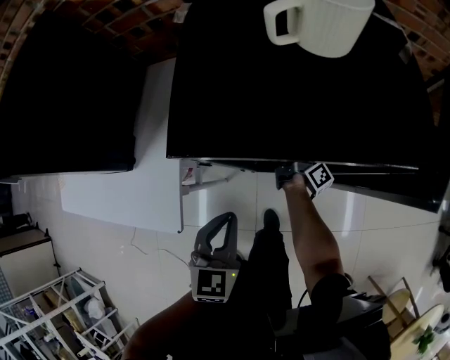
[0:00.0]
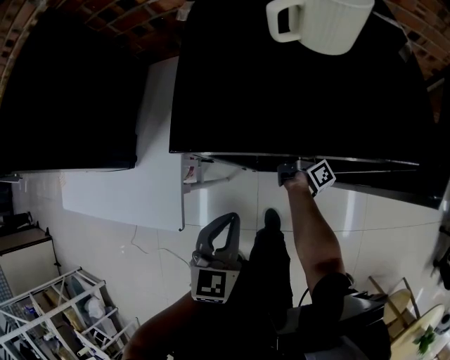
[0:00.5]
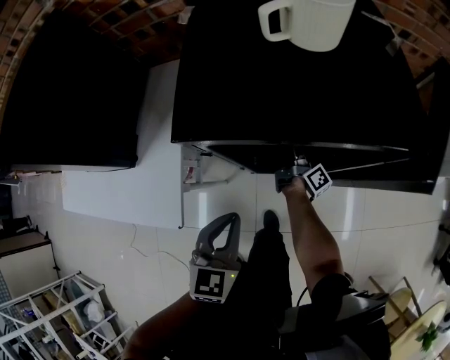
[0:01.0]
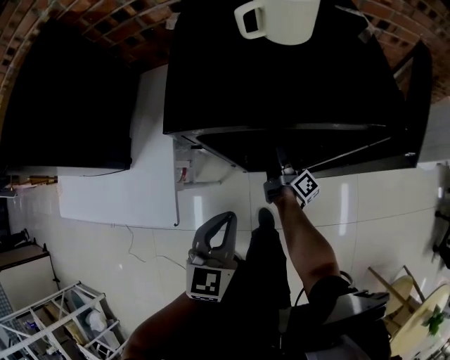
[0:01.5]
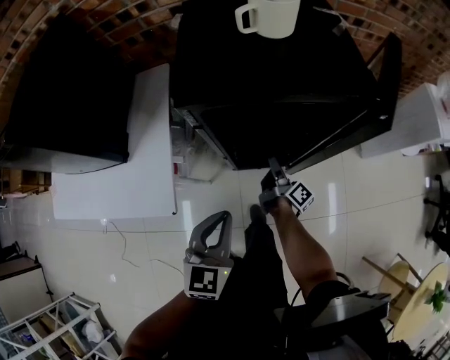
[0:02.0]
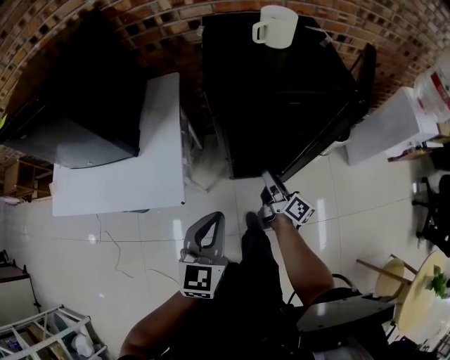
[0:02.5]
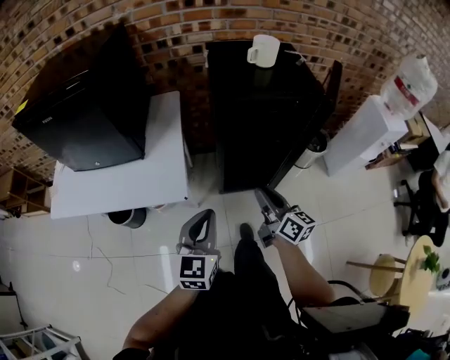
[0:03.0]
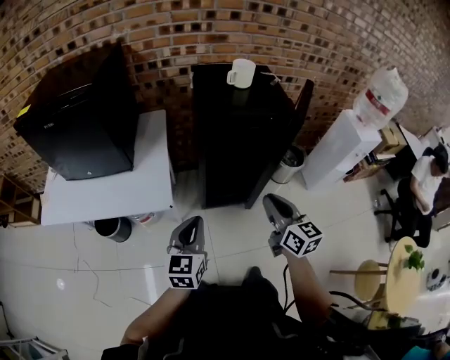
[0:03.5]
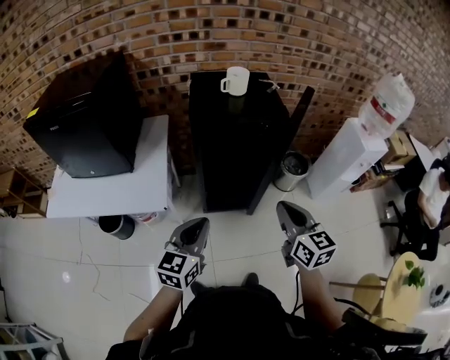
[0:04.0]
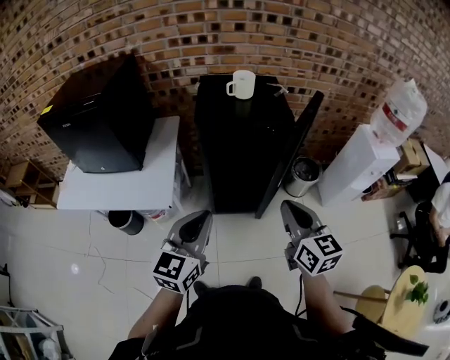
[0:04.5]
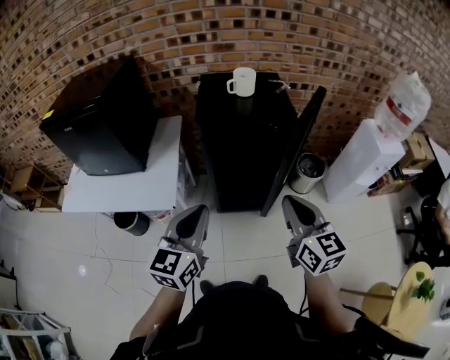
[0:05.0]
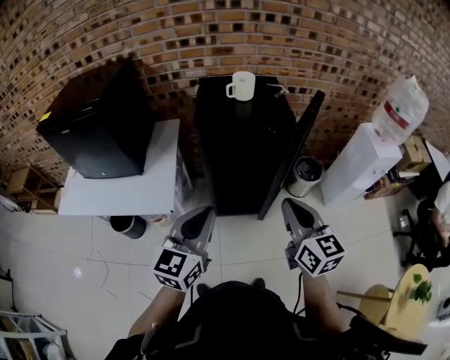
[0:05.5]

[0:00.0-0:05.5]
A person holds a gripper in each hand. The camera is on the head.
0.0 to 2.0 s: The left gripper moves approximately 10 cm.
2.0 to 3.5 s: The left gripper changes place by approximately 20 cm.
3.5 to 5.5 s: The left gripper goes roughly 15 cm upward.

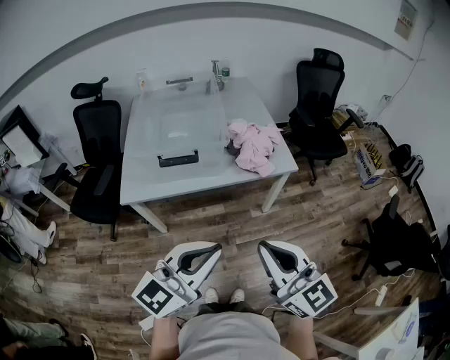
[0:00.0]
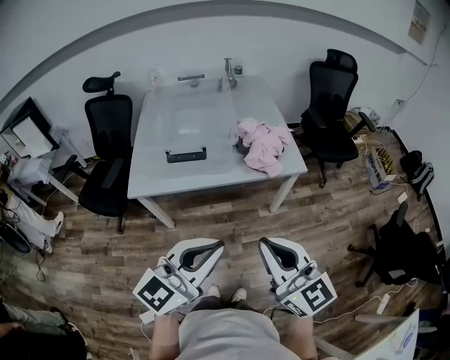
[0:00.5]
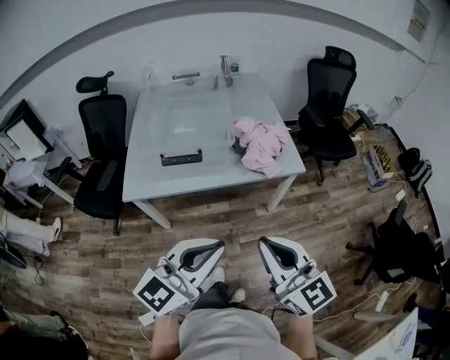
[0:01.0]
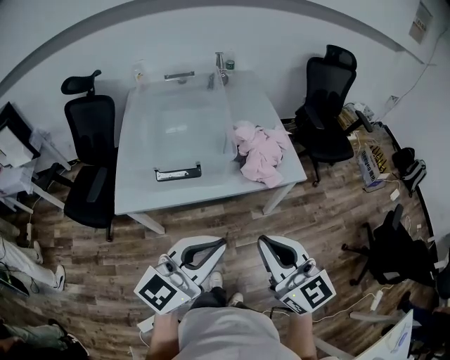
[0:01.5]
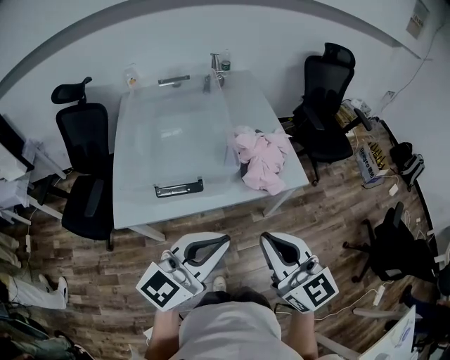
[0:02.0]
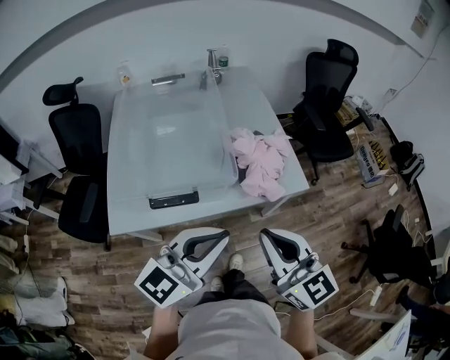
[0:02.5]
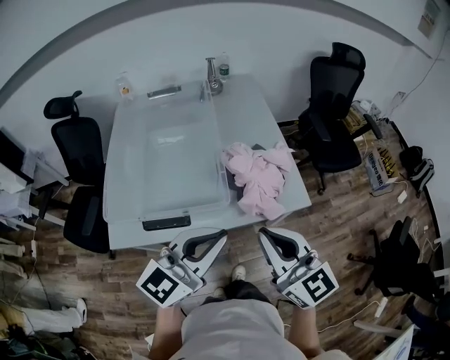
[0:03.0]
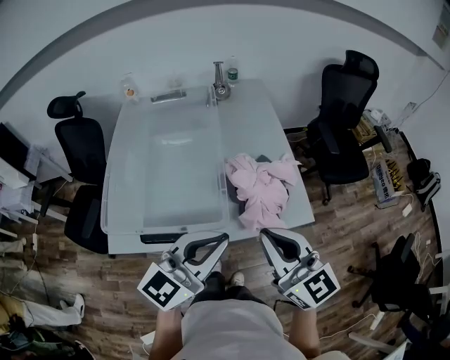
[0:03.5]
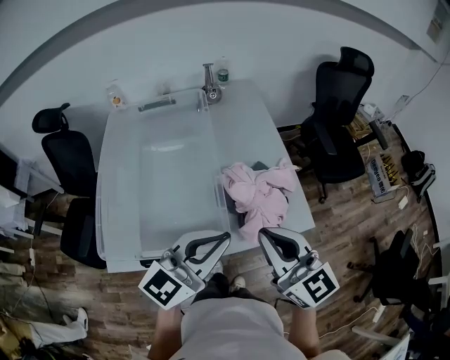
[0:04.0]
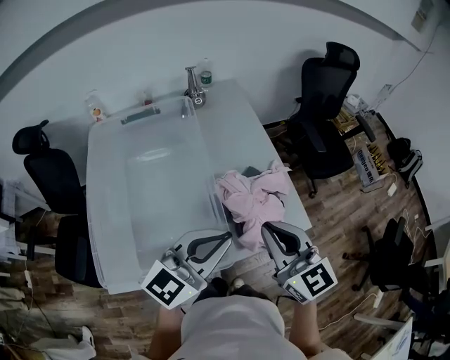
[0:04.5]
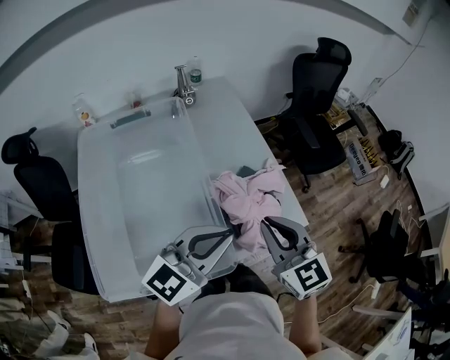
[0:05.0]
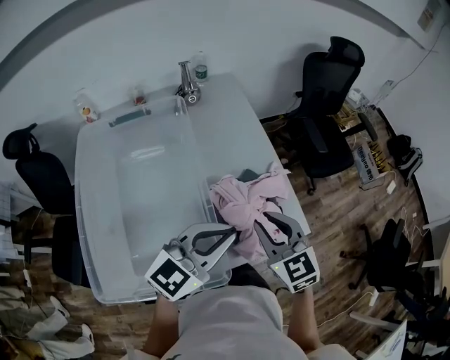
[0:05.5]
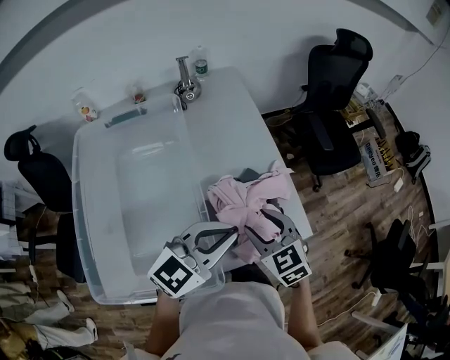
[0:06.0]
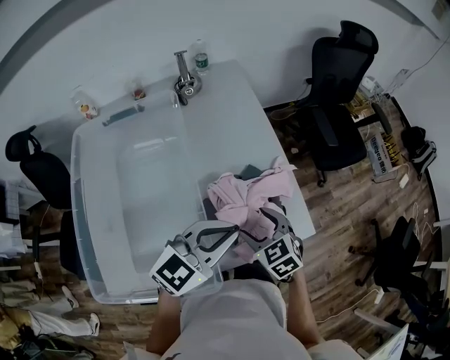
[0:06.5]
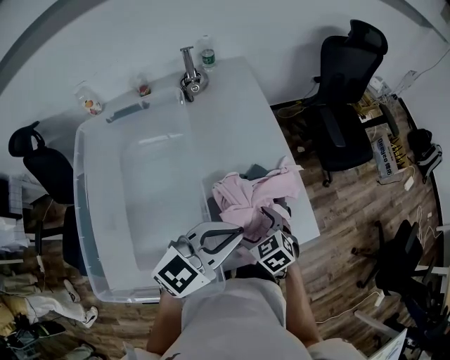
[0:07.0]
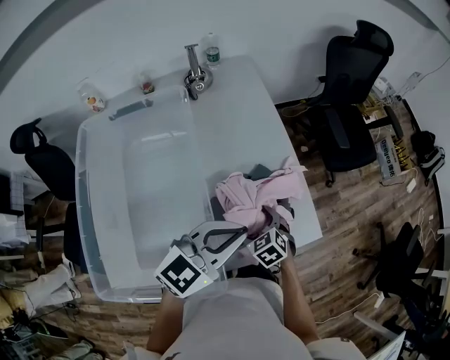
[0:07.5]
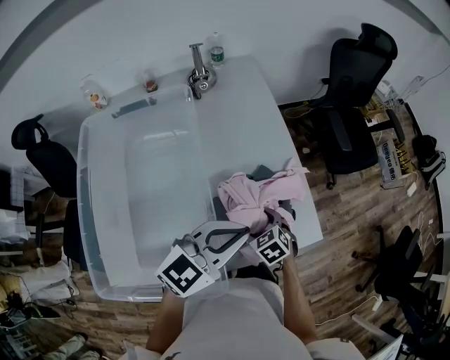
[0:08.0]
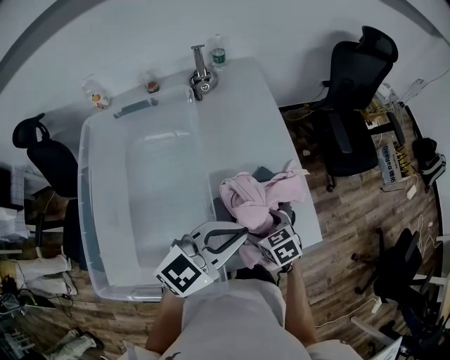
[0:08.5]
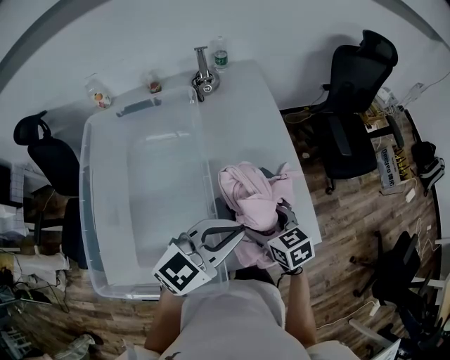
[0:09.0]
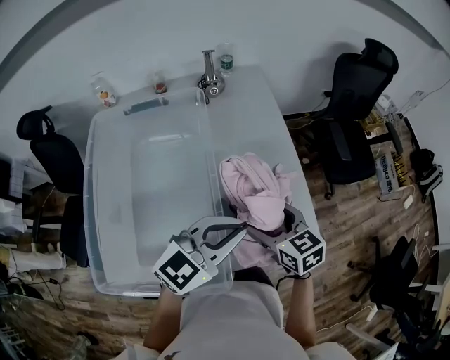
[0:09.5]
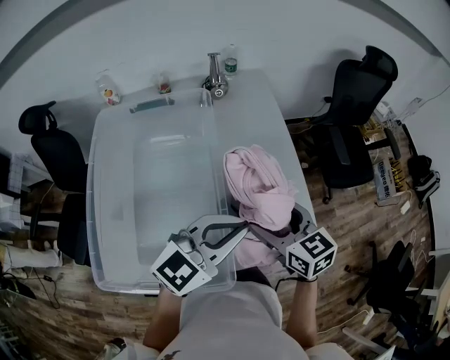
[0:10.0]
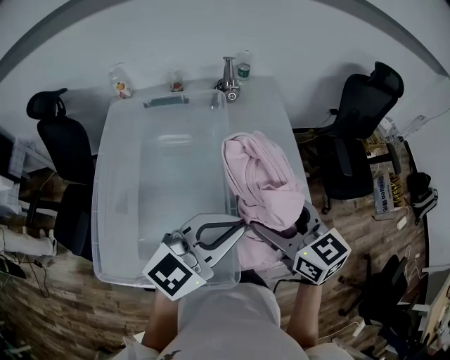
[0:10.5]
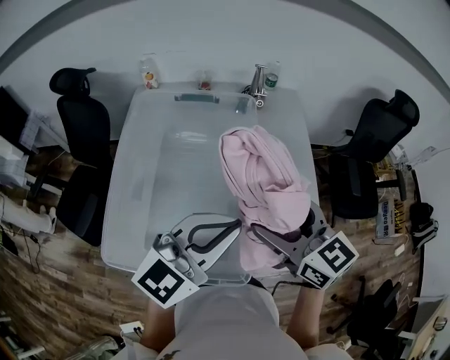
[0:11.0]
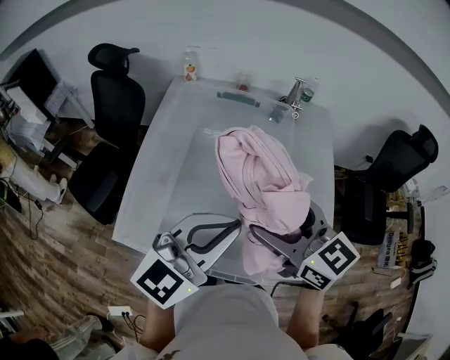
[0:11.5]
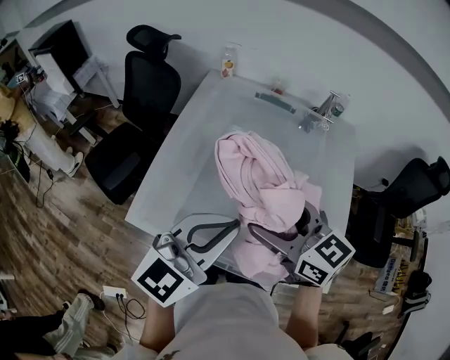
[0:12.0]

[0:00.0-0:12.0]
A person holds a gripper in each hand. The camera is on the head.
0.0 to 2.0 s: The two grippers go approximately 20 cm forward.
2.0 to 4.0 s: Both grippers travel together forward, about 25 cm.
4.0 to 6.0 s: The right gripper moves forward and downward, roughly 20 cm, tilts its fingers approximately 30 degrees downward, and opens its fingers. Meanwhile the left gripper heads forward, covering roughly 15 cm.
6.0 to 8.0 s: The right gripper goes roughly 15 cm downward, swivels about 20 degrees, and opens up.
8.0 to 10.0 s: The right gripper shifts approximately 20 cm upward, and tips its fingers upward by approximately 30 degrees, while the left gripper changes place by roughly 5 cm.
10.0 to 12.0 s: The right gripper ends up about 25 cm from where it was, and turns by roughly 40 degrees, while the left gripper ends up some 25 cm from where it was, and swivels about 40 degrees.

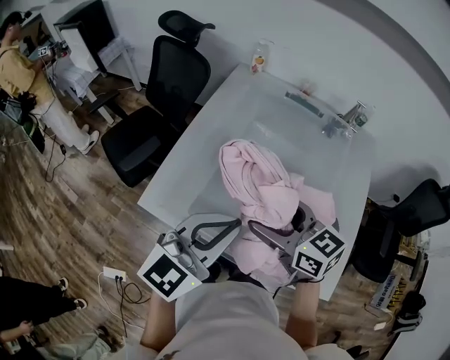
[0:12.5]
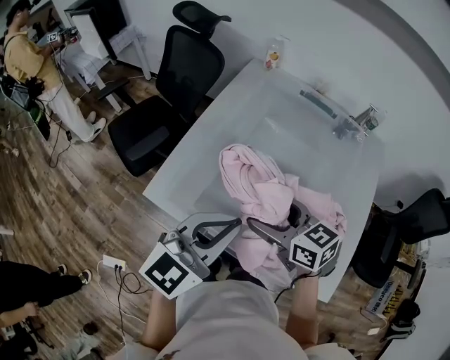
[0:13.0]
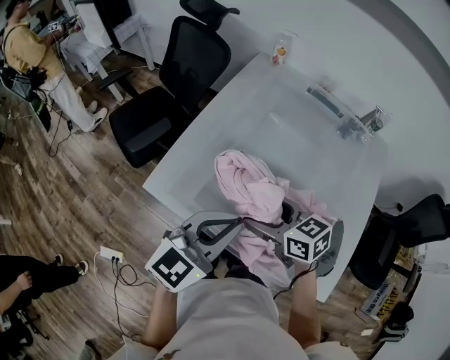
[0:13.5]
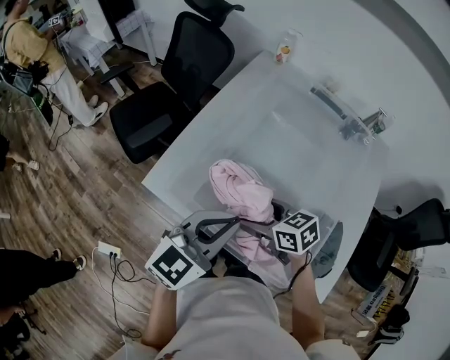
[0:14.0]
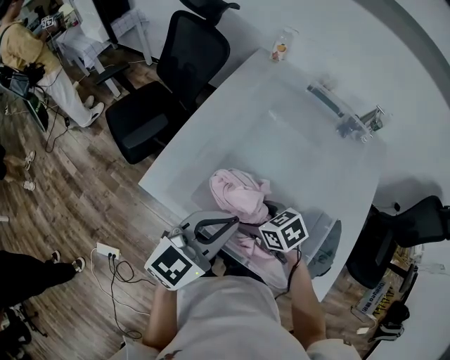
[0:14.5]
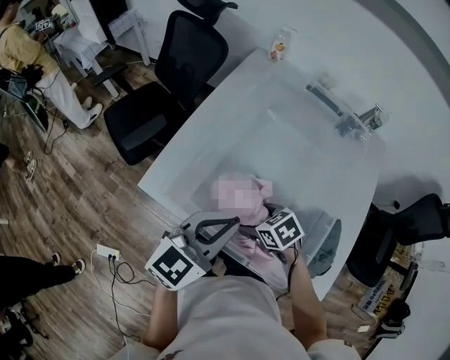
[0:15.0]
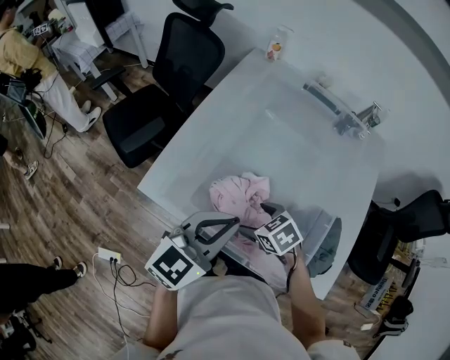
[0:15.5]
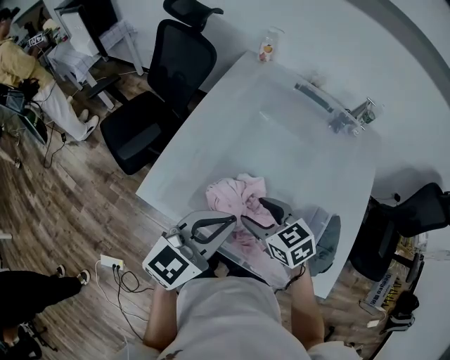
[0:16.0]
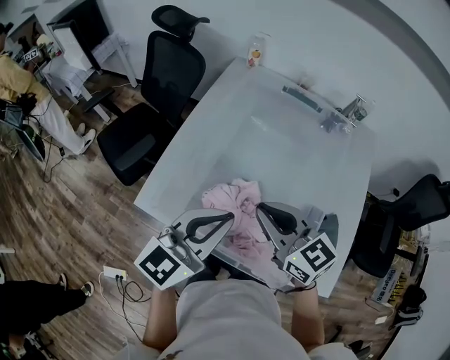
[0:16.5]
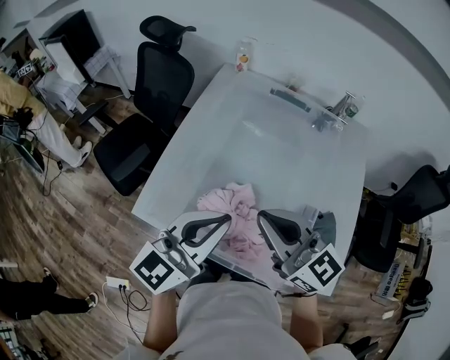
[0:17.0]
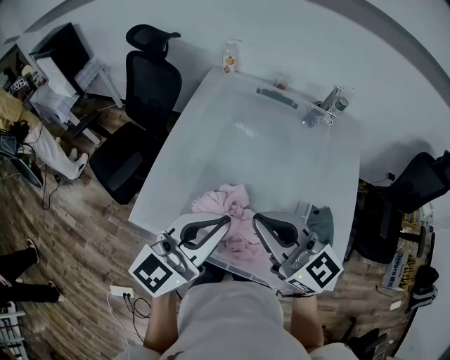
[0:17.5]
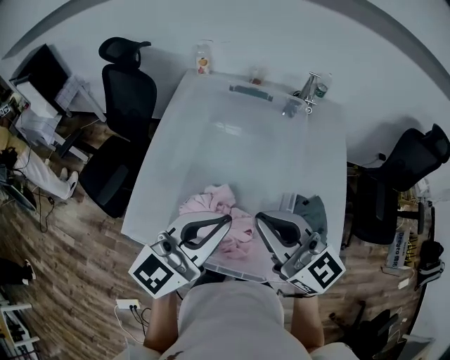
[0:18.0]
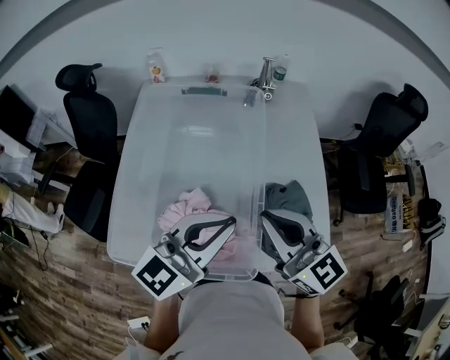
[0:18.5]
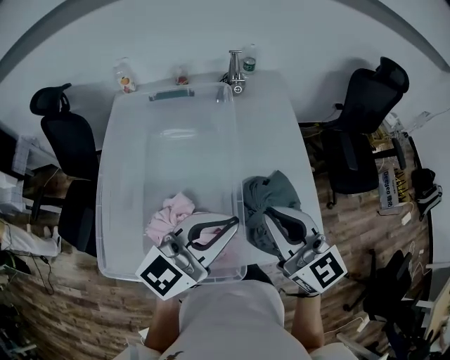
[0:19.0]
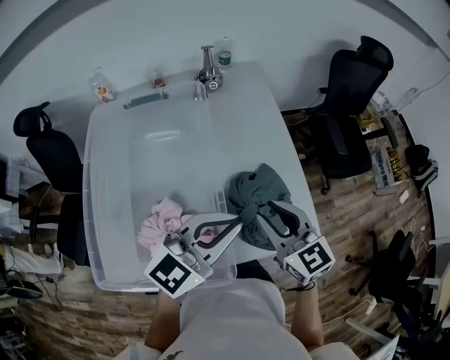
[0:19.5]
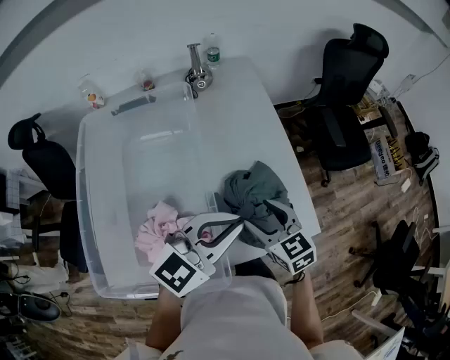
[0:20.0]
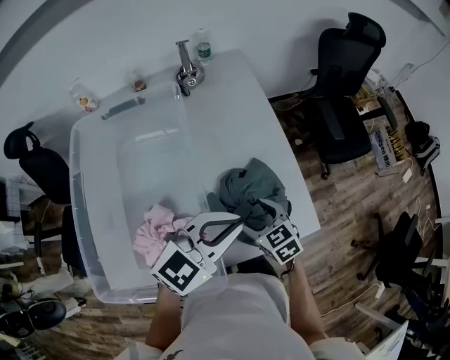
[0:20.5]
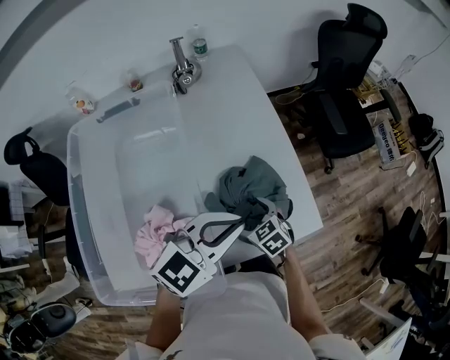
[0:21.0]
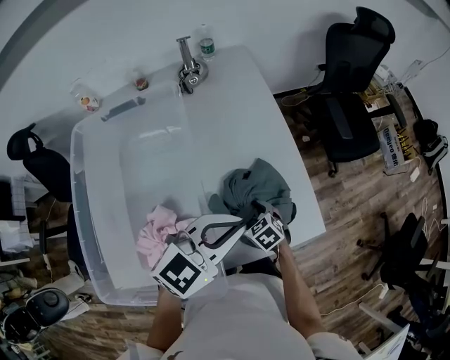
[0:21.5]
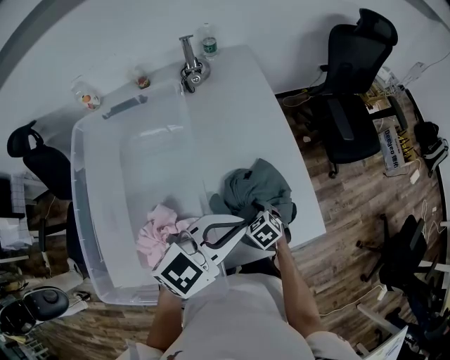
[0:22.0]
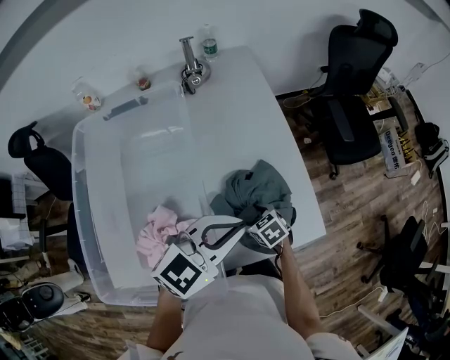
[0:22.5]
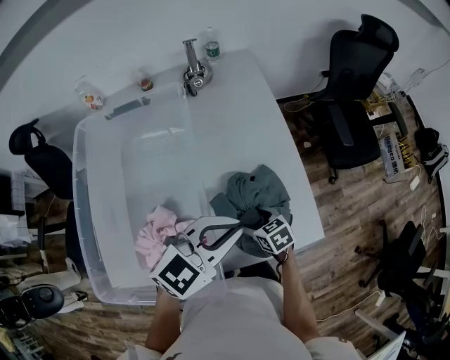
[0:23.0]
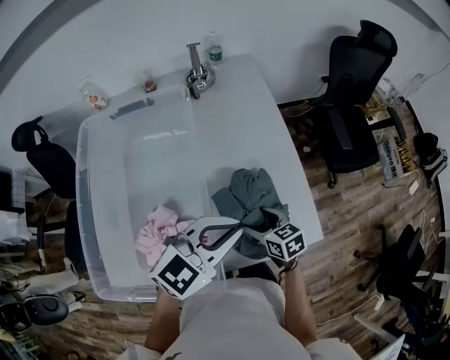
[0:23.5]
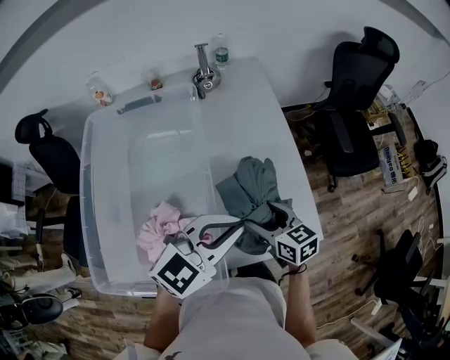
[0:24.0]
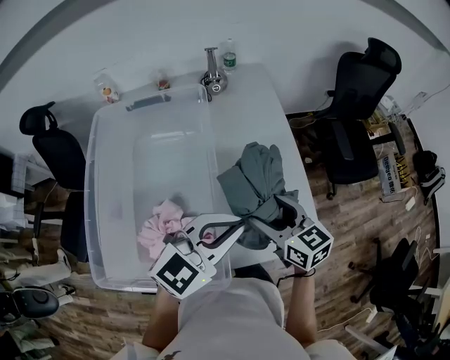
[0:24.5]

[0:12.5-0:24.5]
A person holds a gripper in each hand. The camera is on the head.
12.5 to 14.5 s: The right gripper heads downward, covering some 20 cm, and angles its fingers downward, by approximately 30 degrees. Meanwhile the left gripper is displaced downward by approximately 10 cm.
14.5 to 16.5 s: The right gripper travels upward by about 20 cm, tips its fingers upward by about 40 degrees, and closes up.
16.5 to 18.5 s: The left gripper ends up roughly 15 cm from where it was, and turns by approximately 30 degrees. Meanwhile the right gripper moves roughly 20 cm, and swivels roughly 30 degrees.
18.5 to 20.5 s: The left gripper is displaced to the right, downward and forward by some 20 cm, and changes its angle by about 30 degrees. The right gripper goes approximately 30 cm downward and to the right, angles its fingers downward, by some 40 degrees, and opens.
20.5 to 22.5 s: The right gripper moves downward, some 10 cm.
22.5 to 24.5 s: The left gripper ends up approximately 5 cm from where it was; the right gripper moves upward, some 25 cm, and tips its fingers upward by some 30 degrees.
